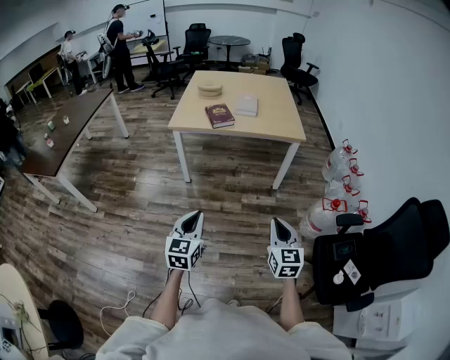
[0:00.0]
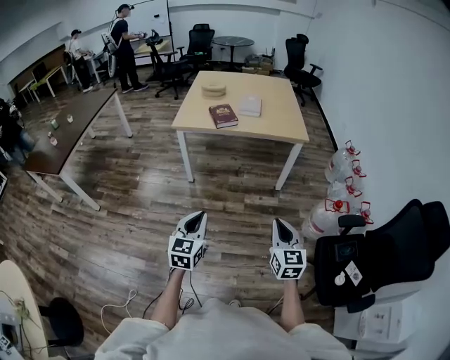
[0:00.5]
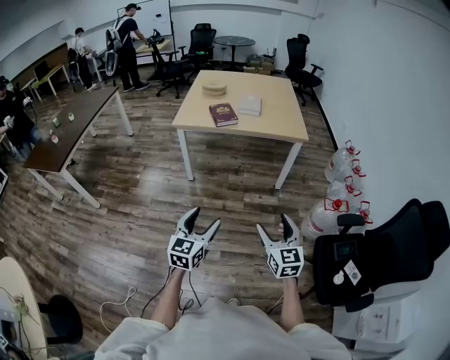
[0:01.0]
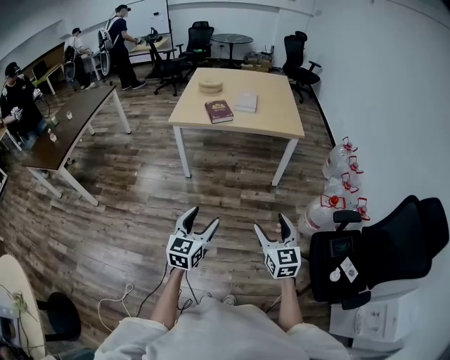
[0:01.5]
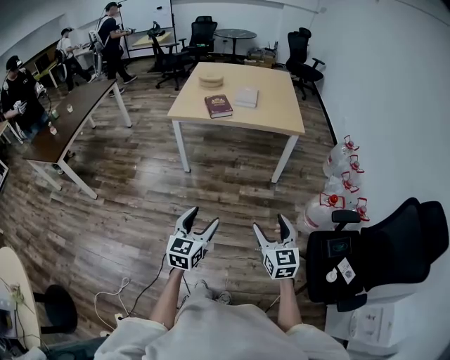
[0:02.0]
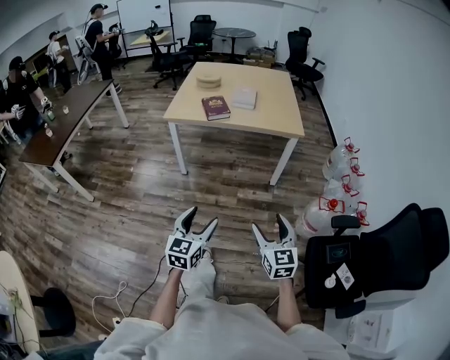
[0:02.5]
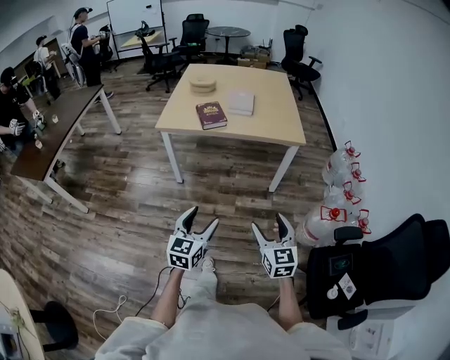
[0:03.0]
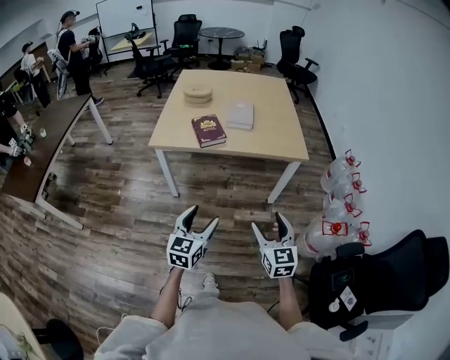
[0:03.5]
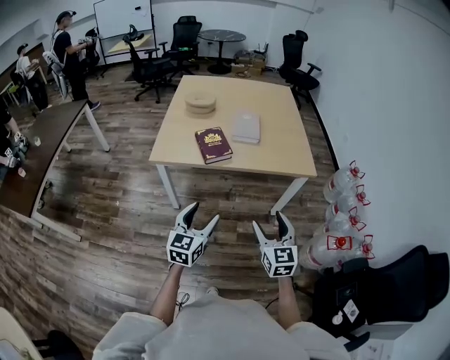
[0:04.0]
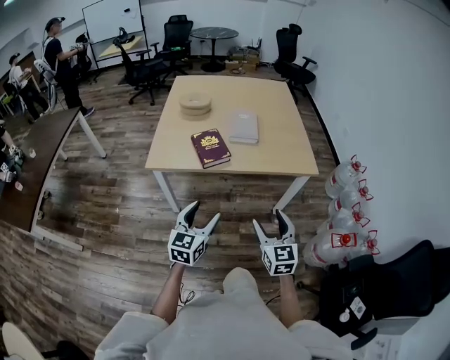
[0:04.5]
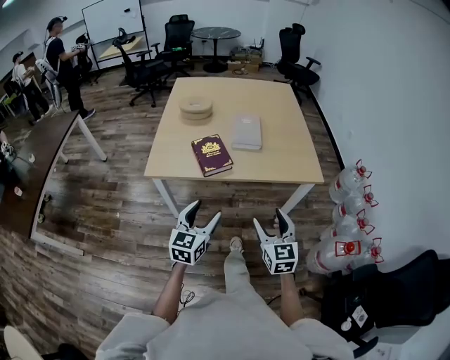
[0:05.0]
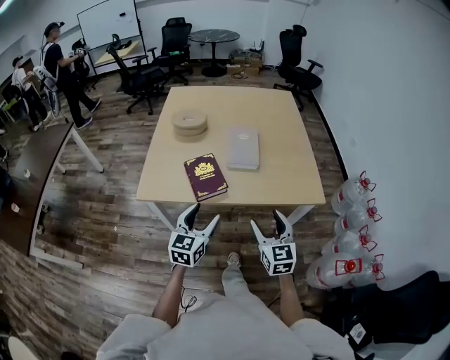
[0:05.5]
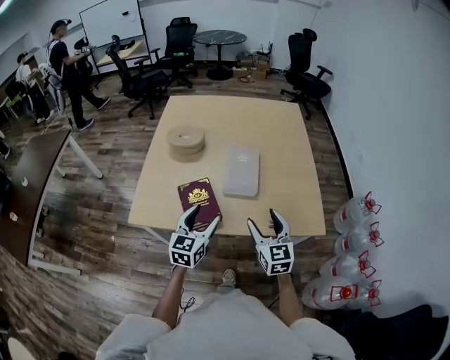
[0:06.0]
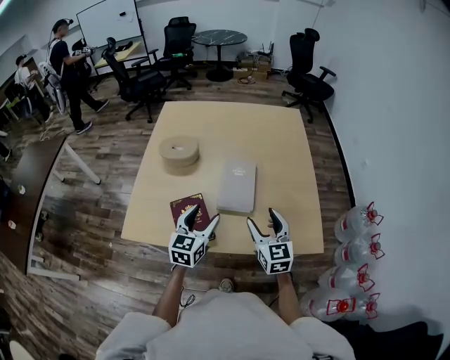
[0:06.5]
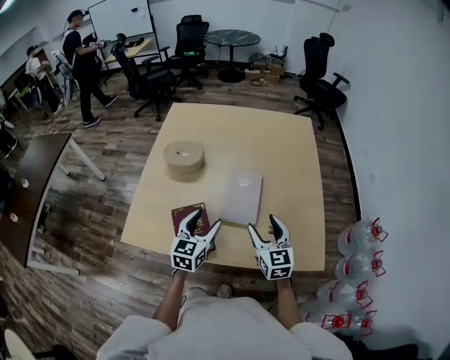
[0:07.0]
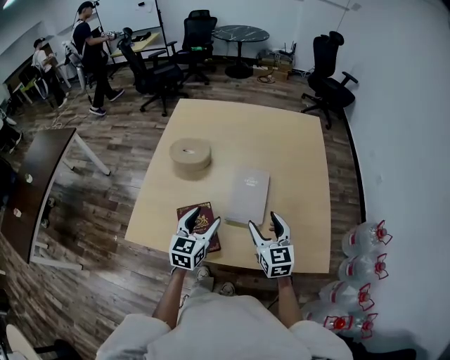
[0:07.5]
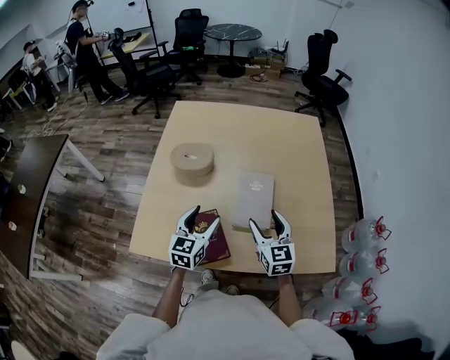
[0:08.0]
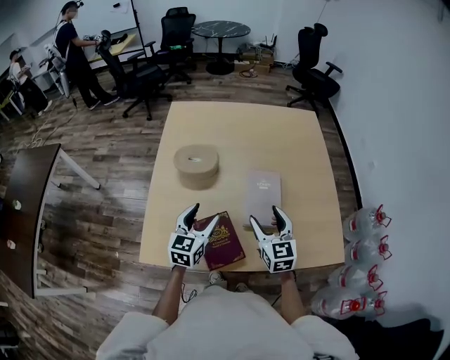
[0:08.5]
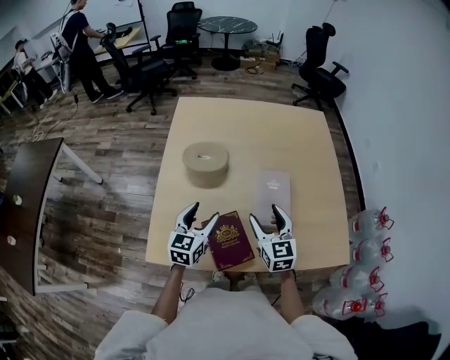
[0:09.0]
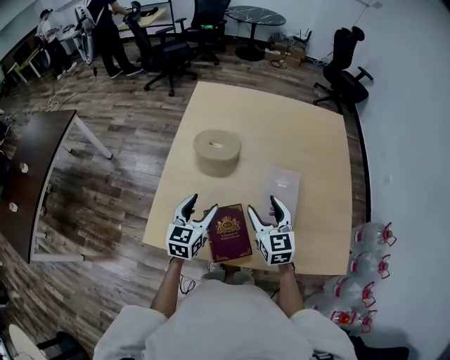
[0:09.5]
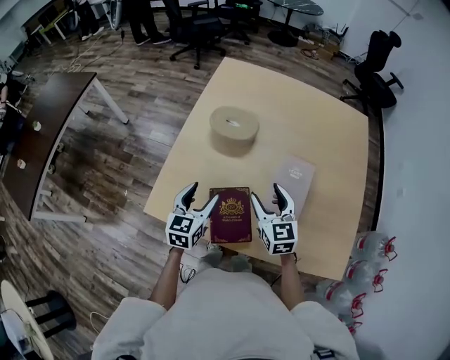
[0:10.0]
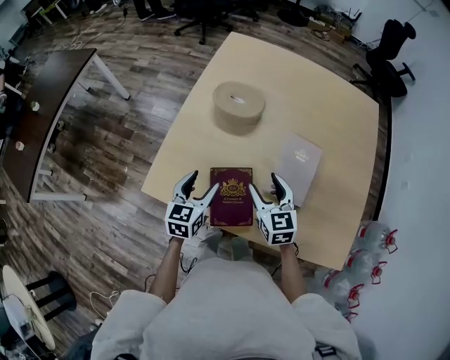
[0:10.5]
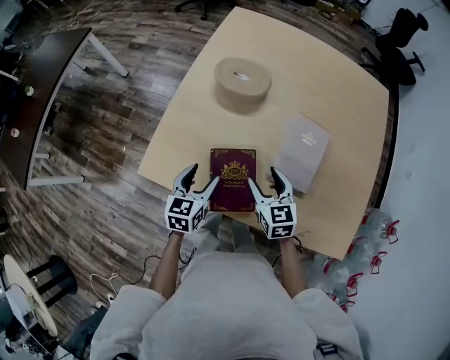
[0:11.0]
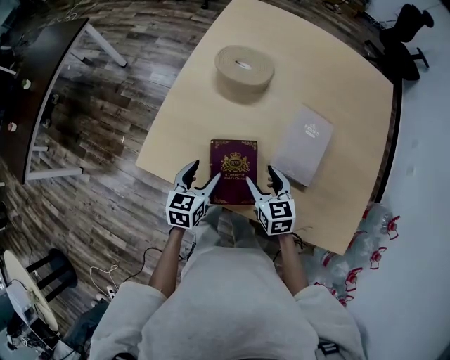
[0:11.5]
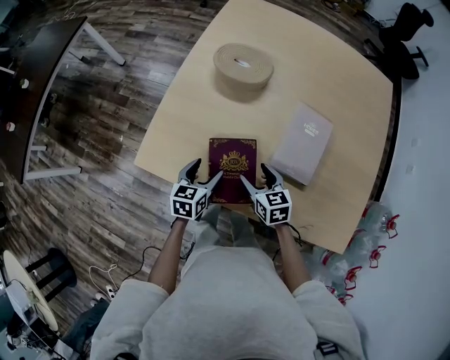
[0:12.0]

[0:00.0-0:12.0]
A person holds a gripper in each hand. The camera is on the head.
0:00.0 to 0:02.0: The right gripper opens its fingers, while the left gripper goes approximately 10 cm to the right, and opens its fingers.
0:02.0 to 0:04.0: The two grippers go some 40 cm forward.
0:04.0 to 0:06.0: Both grippers travel together forward, roughly 35 cm.
0:06.0 to 0:08.0: Both grippers move forward, some 15 cm.
0:08.0 to 0:10.0: Both grippers move to the left, roughly 10 cm.
0:10.0 to 0:12.0: The left gripper shifts roughly 15 cm downward and backward. The right gripper heads downward, covering roughly 15 cm, and swivels about 30 degrees.

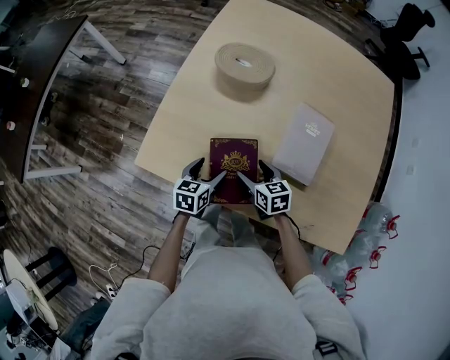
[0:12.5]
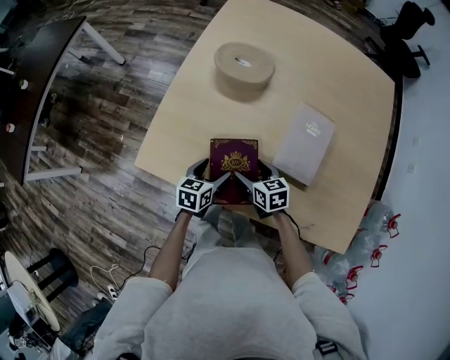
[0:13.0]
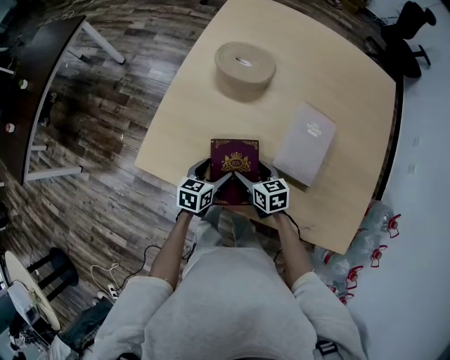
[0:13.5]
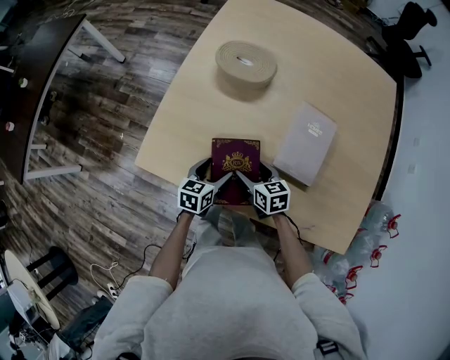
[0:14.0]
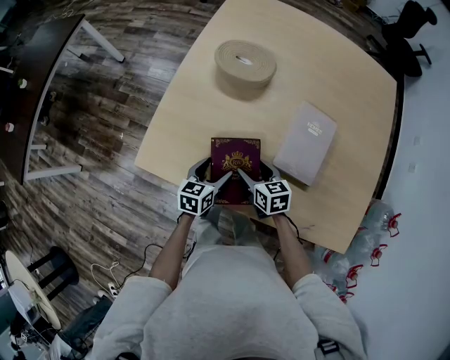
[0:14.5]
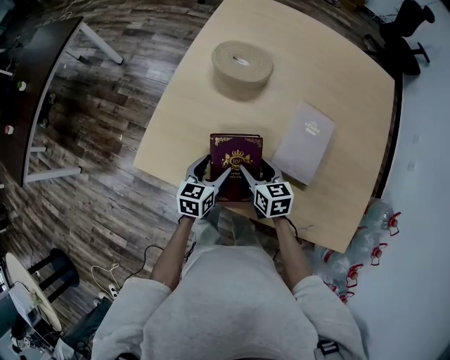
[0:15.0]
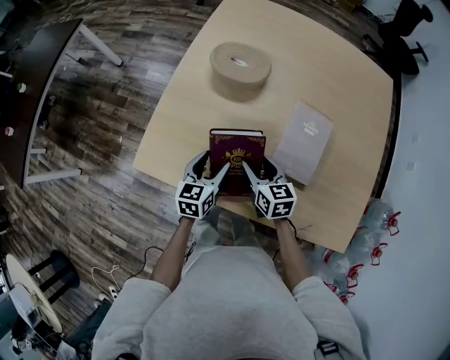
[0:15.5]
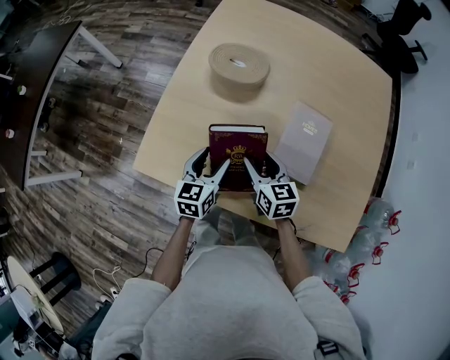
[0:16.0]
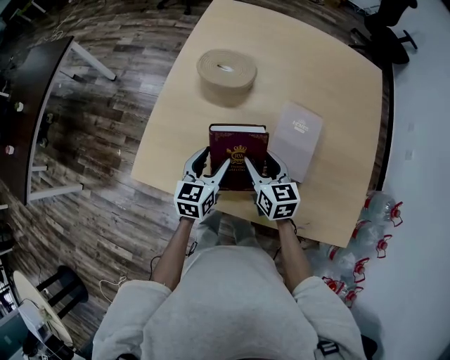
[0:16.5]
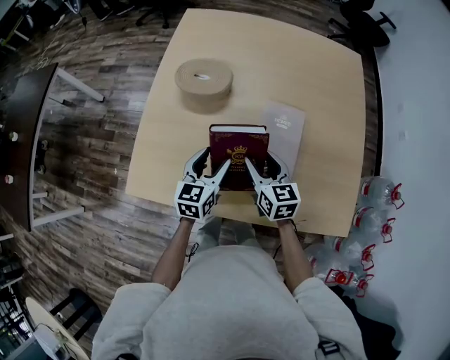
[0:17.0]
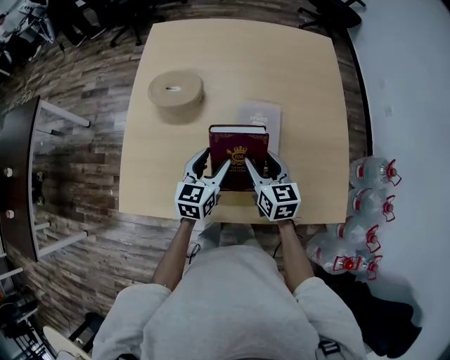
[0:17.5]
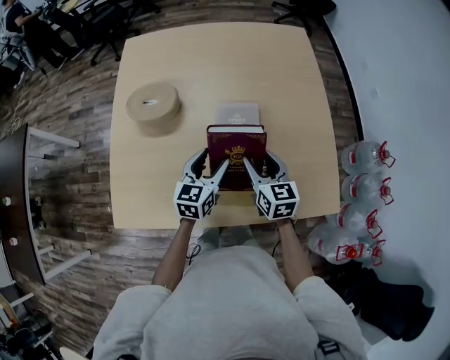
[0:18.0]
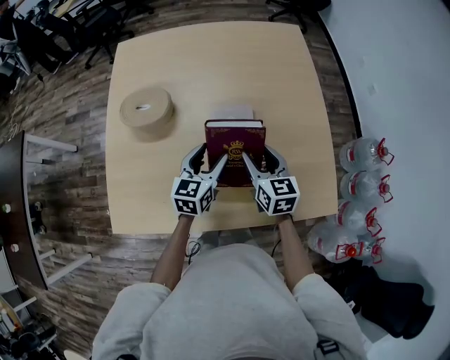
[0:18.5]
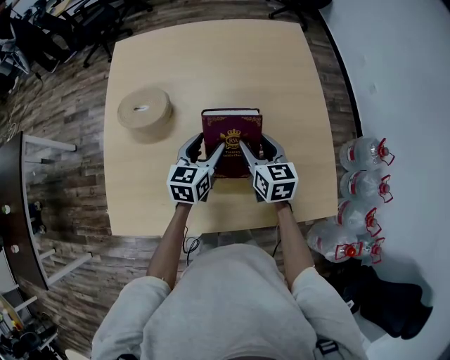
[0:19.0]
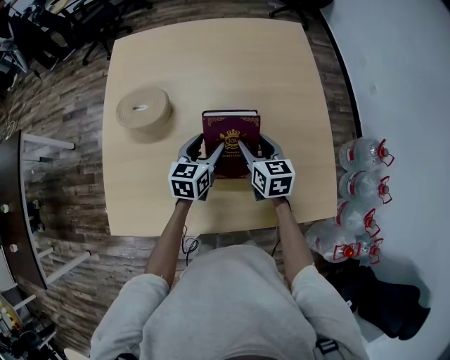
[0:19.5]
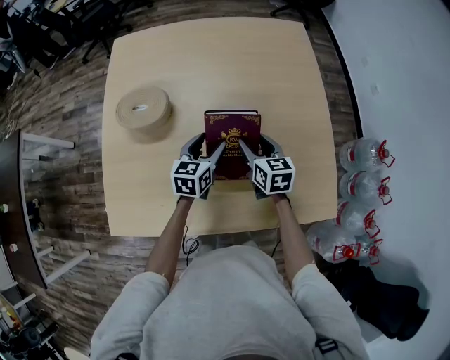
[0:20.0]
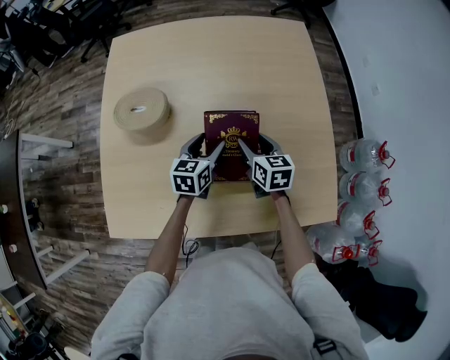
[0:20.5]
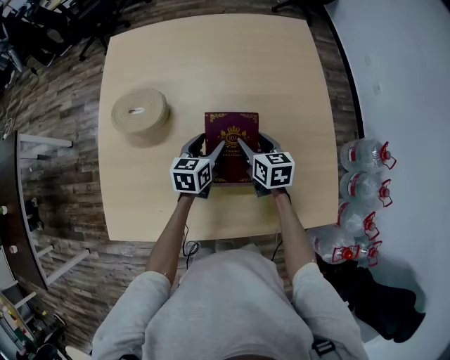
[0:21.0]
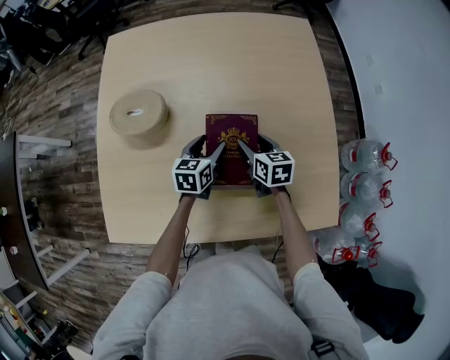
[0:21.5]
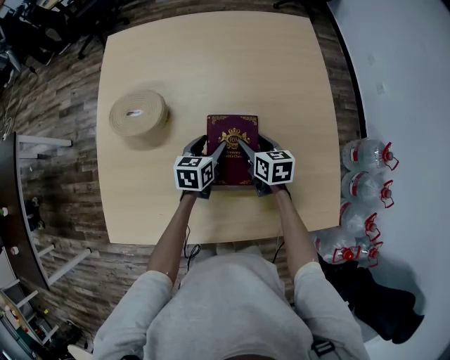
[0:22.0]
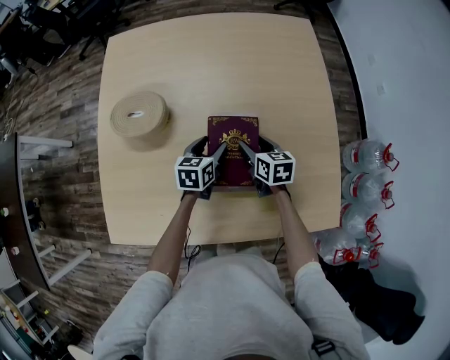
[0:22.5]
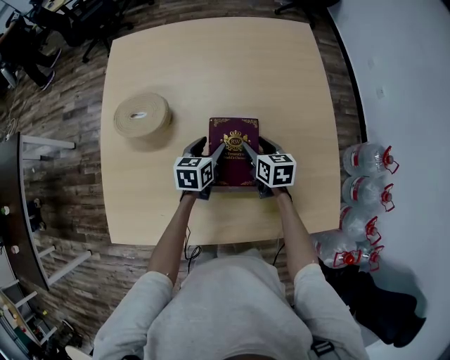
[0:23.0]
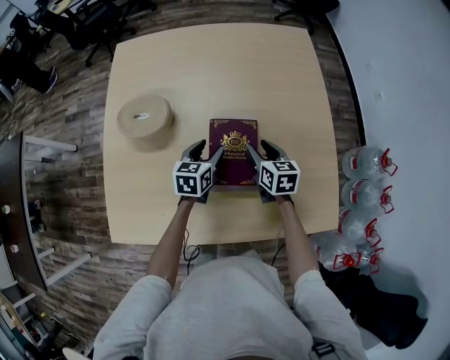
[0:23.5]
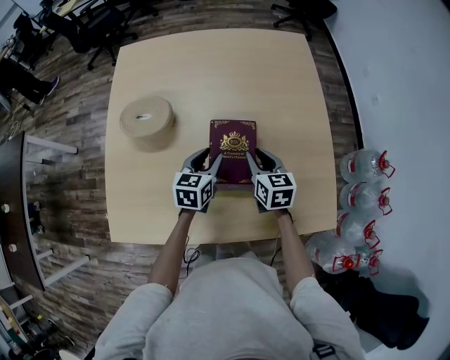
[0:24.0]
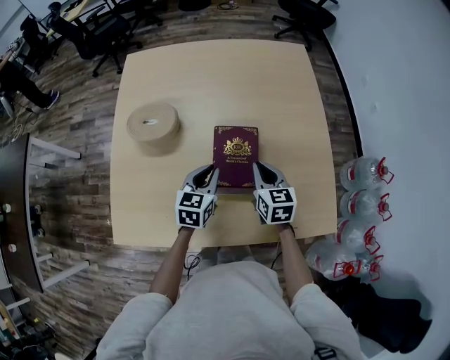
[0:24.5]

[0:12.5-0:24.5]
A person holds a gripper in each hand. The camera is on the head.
0:12.5 to 0:14.5: The grippers make only small movements.
0:14.5 to 0:16.5: The left gripper is displaced upward and forward by roughly 10 cm. Meanwhile the right gripper moves upward, some 10 cm.
0:16.5 to 0:18.5: The left gripper goes about 20 cm to the right and forward, and turns by approximately 20 degrees. Meanwhile the right gripper moves to the right, approximately 20 cm, and rotates approximately 20 degrees.
0:18.5 to 0:20.5: Both grippers travel together forward and downward, some 10 cm.
0:20.5 to 0:22.5: The two grippers go about 5 cm downward.
0:22.5 to 0:24.5: Both grippers travel together upward and backward, some 10 cm. The right gripper closes its fingers. The left gripper closes its fingers.

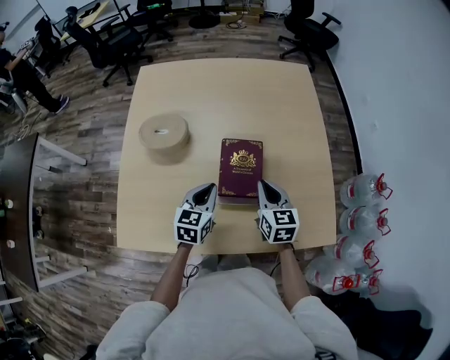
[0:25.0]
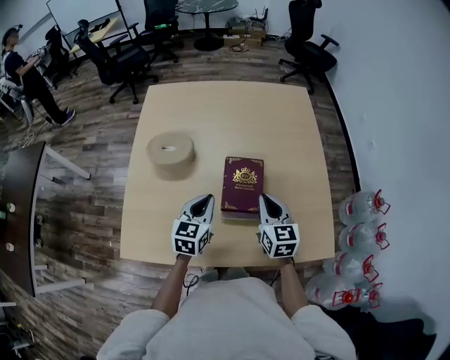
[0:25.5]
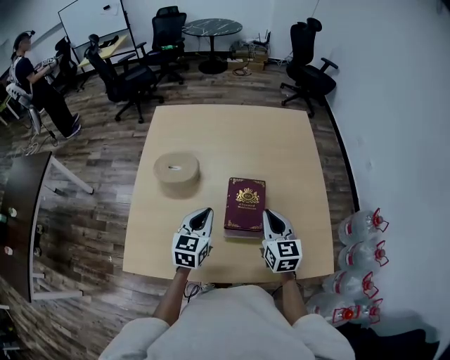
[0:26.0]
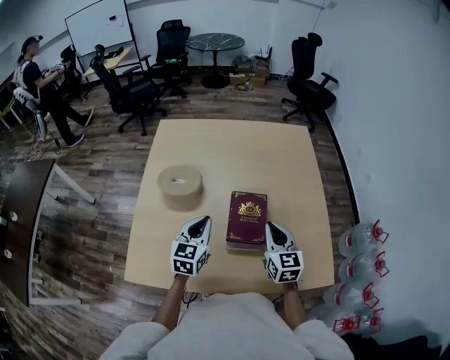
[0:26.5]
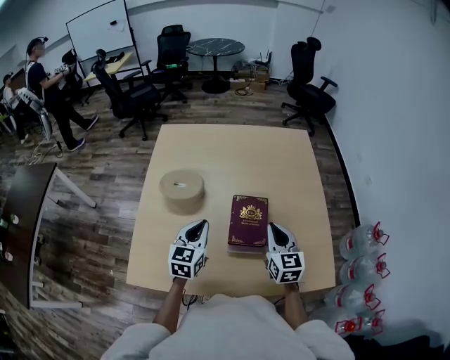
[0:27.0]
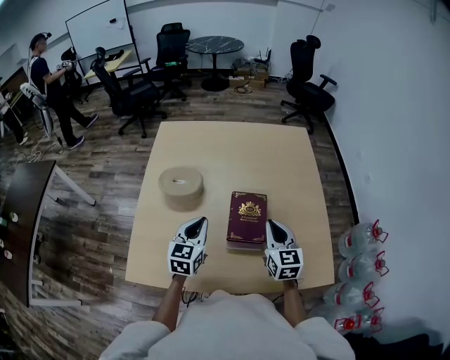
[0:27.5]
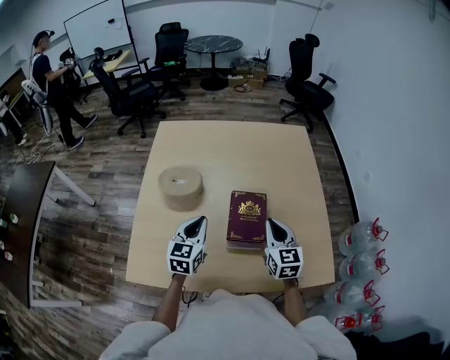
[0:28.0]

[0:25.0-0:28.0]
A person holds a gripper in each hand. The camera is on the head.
0:25.0 to 0:26.5: The left gripper travels upward and to the left by approximately 10 cm. The right gripper heads upward, covering some 5 cm.
0:26.5 to 0:28.0: The grippers move only a little.
